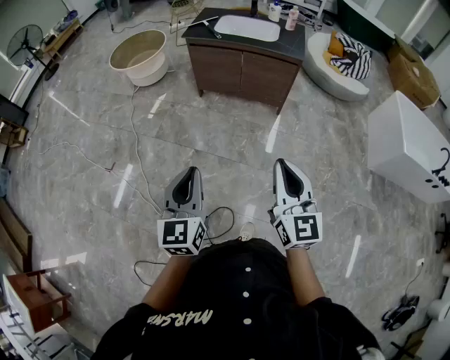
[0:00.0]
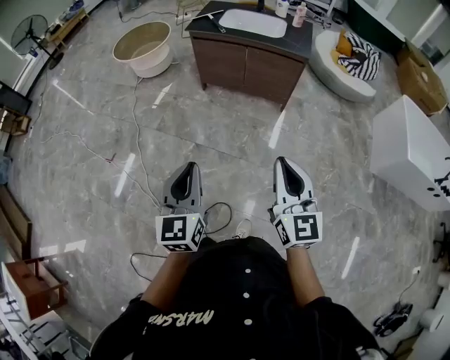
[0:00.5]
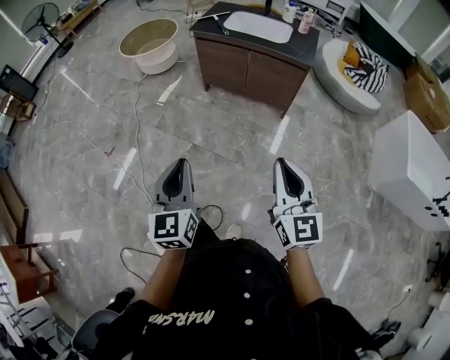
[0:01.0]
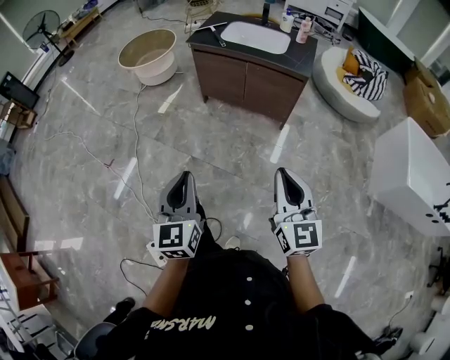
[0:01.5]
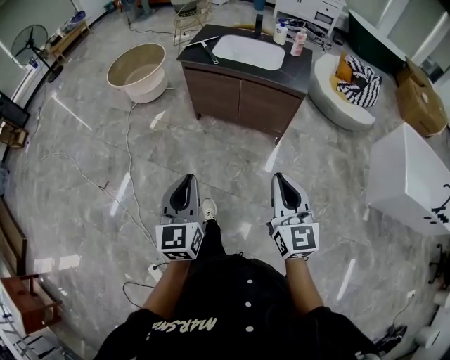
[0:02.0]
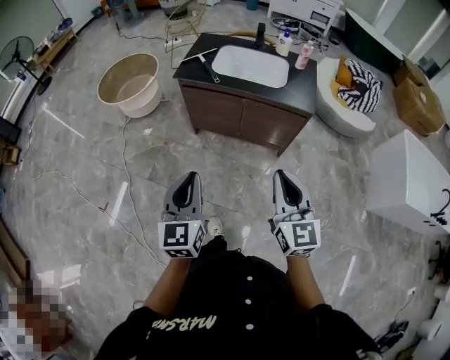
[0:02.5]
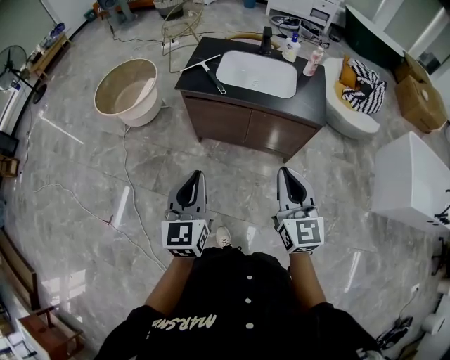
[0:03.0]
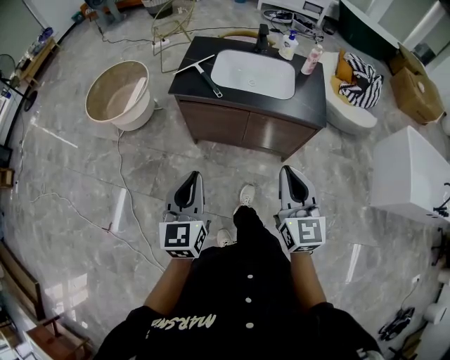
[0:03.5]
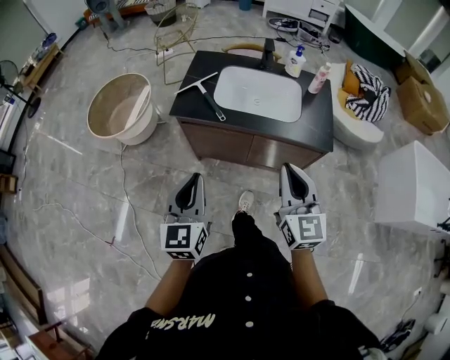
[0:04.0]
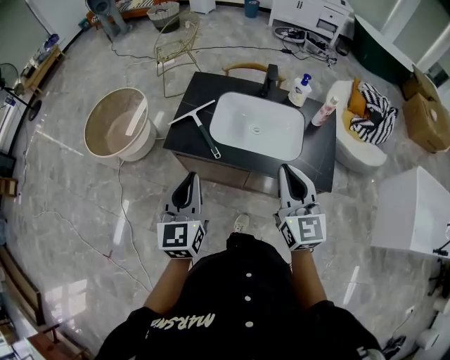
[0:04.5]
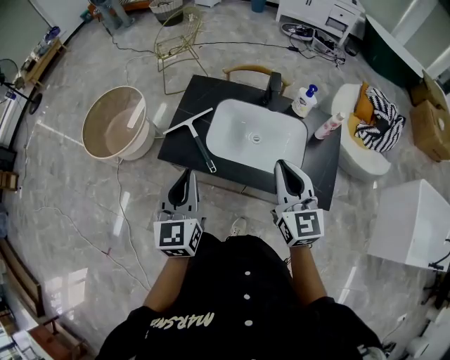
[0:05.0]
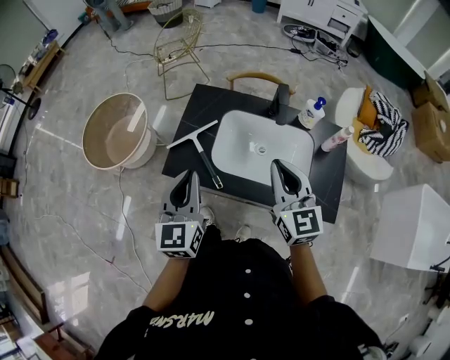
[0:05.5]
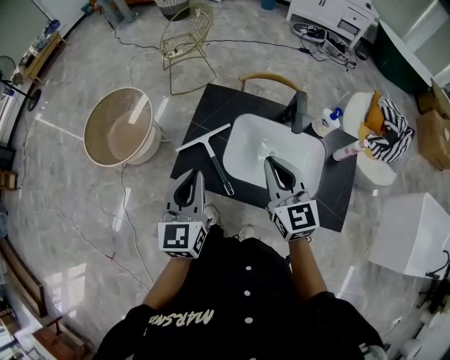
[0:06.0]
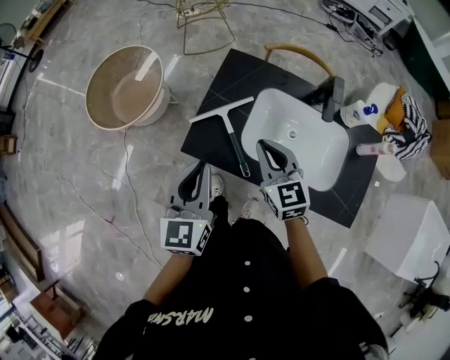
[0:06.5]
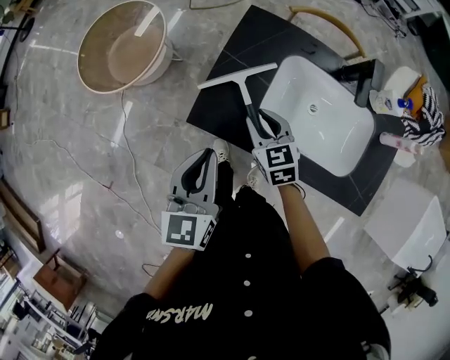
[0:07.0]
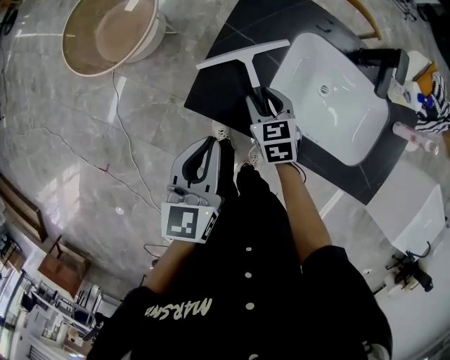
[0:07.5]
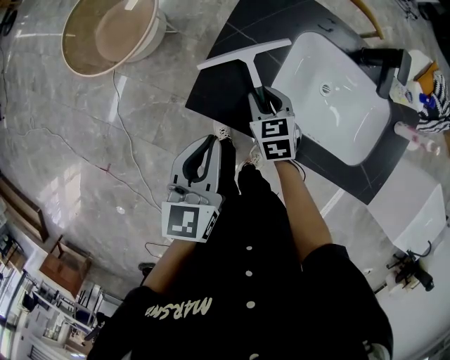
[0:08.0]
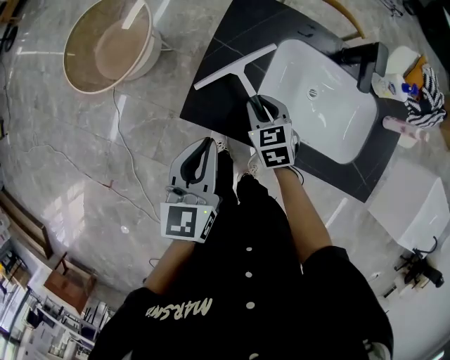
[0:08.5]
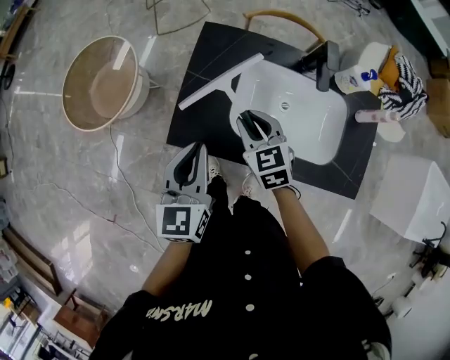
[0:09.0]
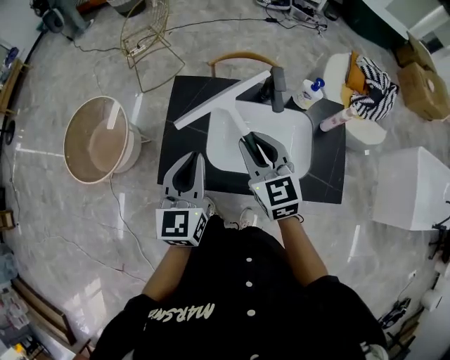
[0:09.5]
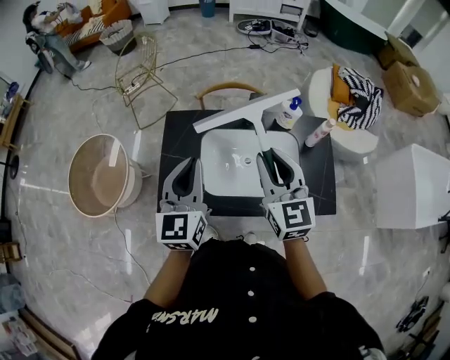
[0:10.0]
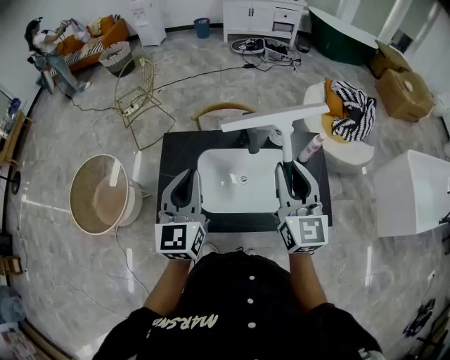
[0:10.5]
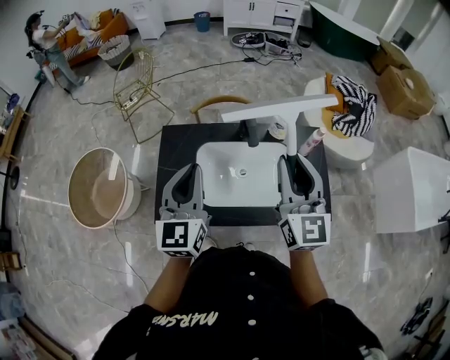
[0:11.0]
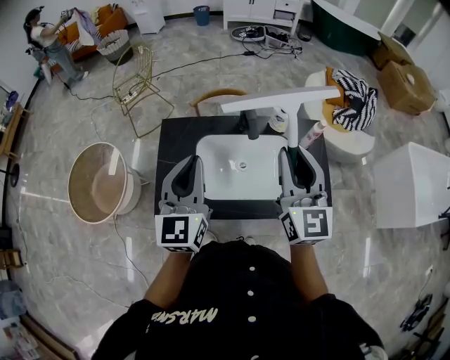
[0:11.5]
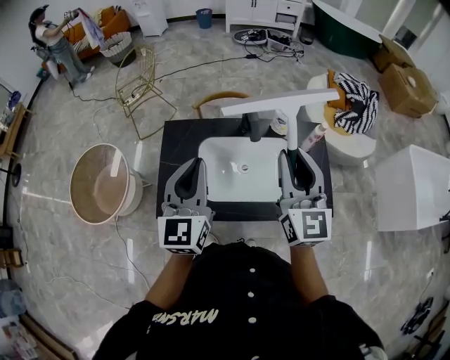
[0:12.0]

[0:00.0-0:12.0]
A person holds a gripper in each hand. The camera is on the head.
0:00.0 to 0:02.0: Both grippers move forward and to the right, about 20 cm.
0:02.0 to 0:04.0: Both grippers are carried forward, some 40 cm.
0:04.0 to 0:06.0: The grippers both shift forward by approximately 40 cm.
0:06.0 to 0:08.0: The left gripper shifts about 20 cm downward and to the left, while the right gripper heads downward and to the left, covering about 35 cm, tilts its fingers roughly 40 degrees downward, and opens up.
0:08.0 to 0:10.0: The right gripper moves upward and to the right, about 40 cm, and tilts its fingers about 40 degrees upward. Meanwhile the left gripper travels upward and to the right by approximately 25 cm, and changes its angle by approximately 30 degrees.
0:10.0 to 0:12.0: The left gripper ends up some 5 cm from where it was. The right gripper travels to the right and upward by approximately 10 cm.

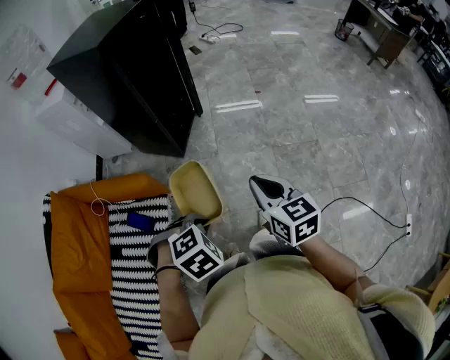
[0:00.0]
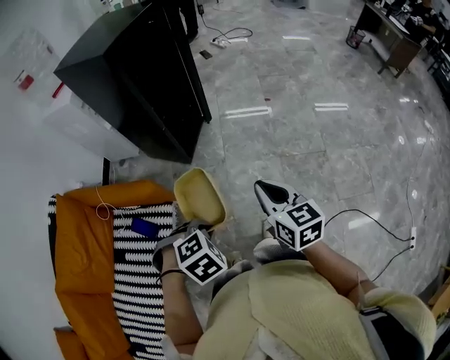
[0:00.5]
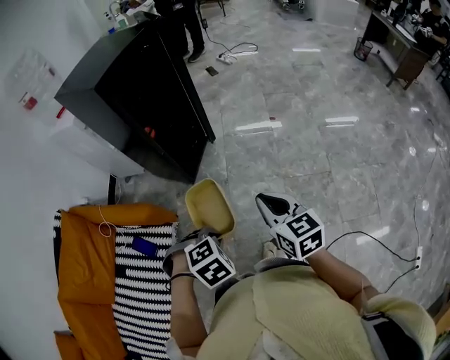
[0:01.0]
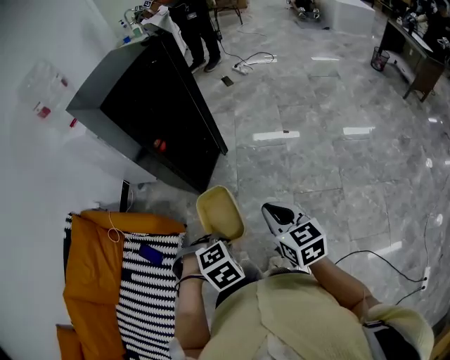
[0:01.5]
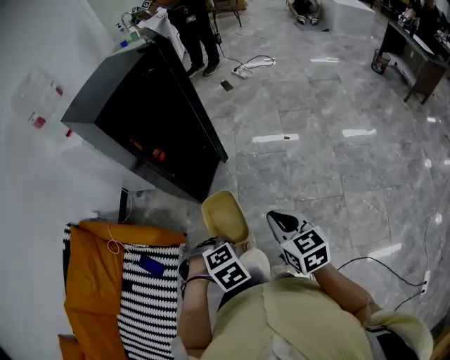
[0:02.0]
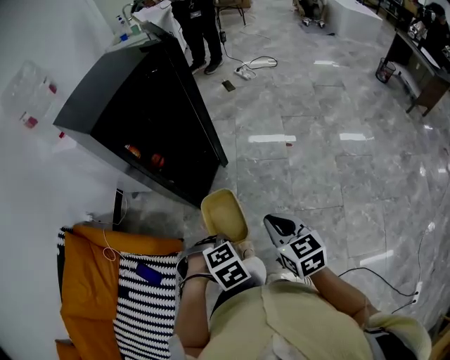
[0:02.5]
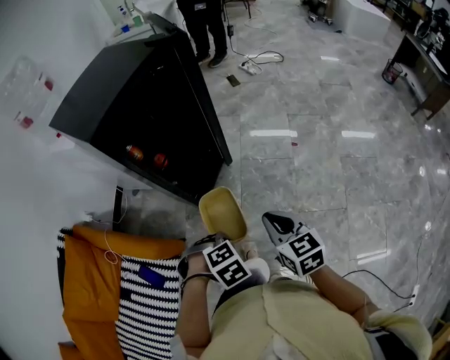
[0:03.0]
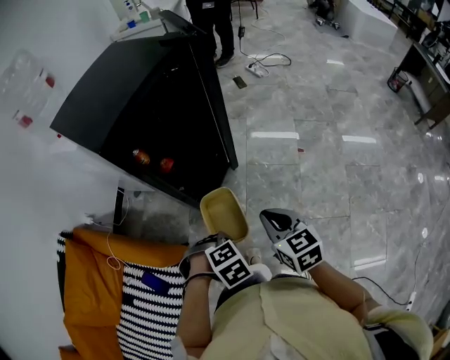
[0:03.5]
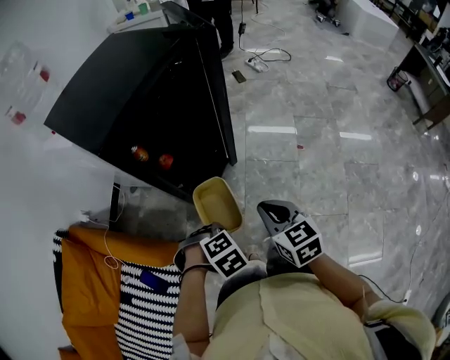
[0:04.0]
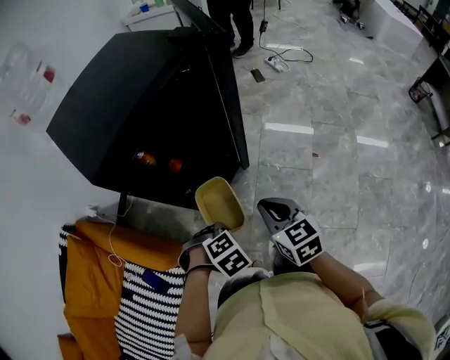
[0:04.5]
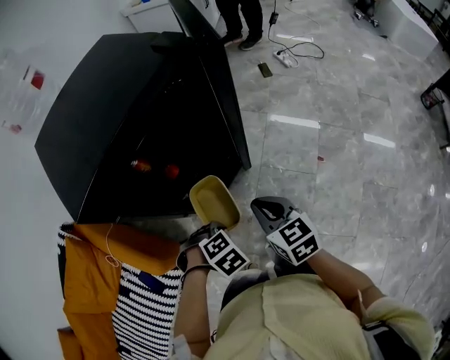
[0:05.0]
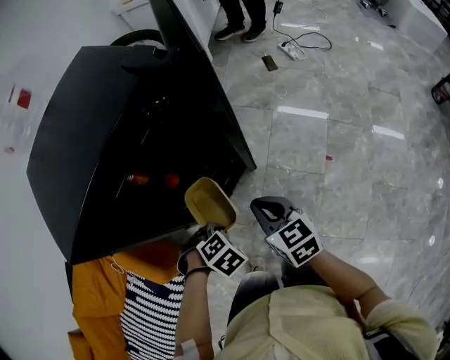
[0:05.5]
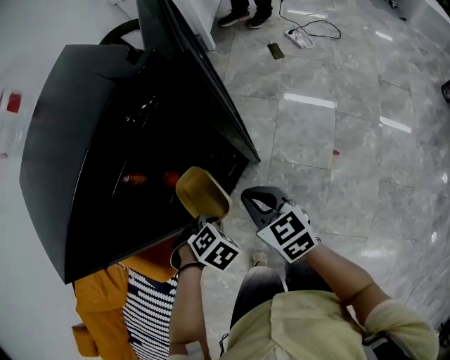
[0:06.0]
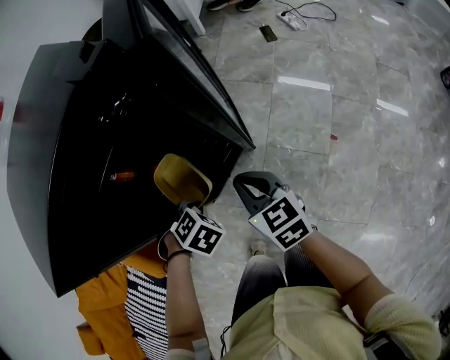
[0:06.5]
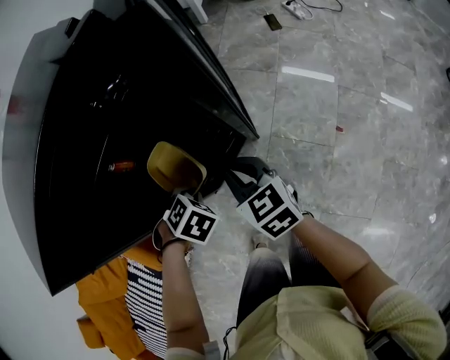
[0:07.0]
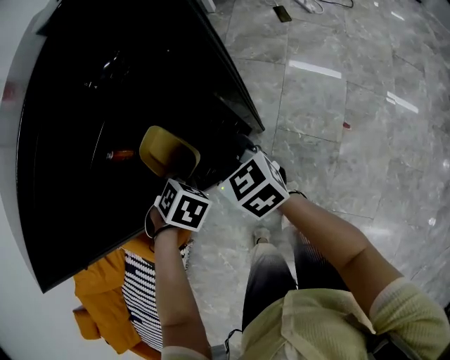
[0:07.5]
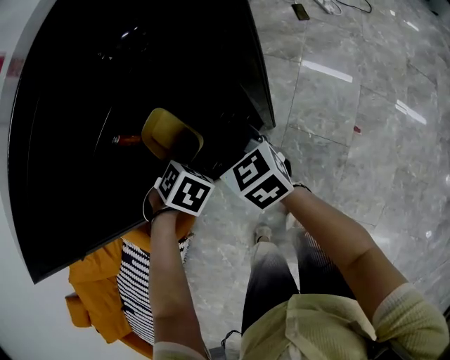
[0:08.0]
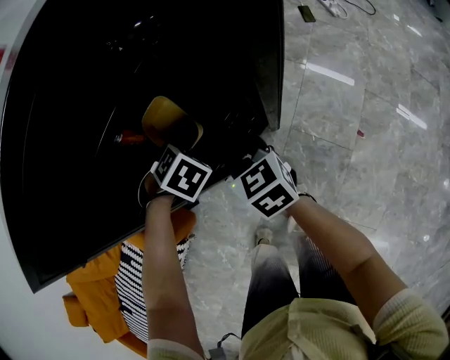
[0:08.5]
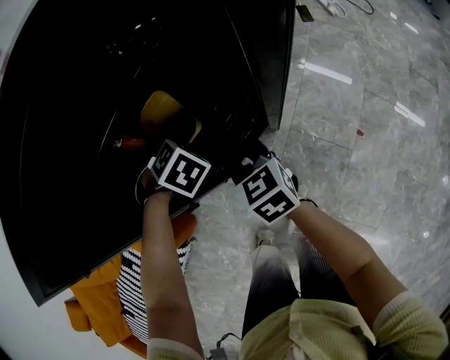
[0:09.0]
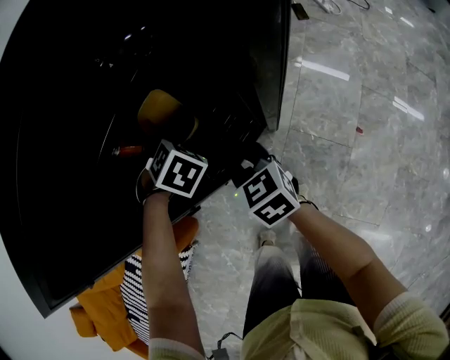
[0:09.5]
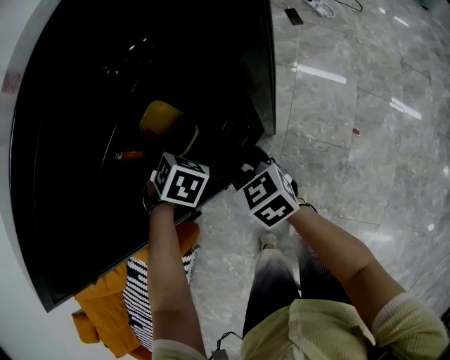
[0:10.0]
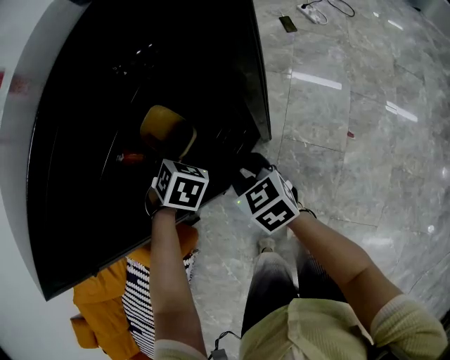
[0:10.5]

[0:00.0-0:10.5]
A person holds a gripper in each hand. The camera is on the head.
0:00.0 to 0:02.0: The right gripper moves about 20 cm; the left gripper changes place by approximately 20 cm.
0:02.0 to 0:04.0: The left gripper changes place by about 25 cm; the right gripper moves roughly 25 cm.
0:04.0 to 0:06.5: The right gripper changes place by some 25 cm. Meanwhile the left gripper ends up about 25 cm from where it was, and rotates roughly 30 degrees.
0:06.5 to 0:08.5: The right gripper changes place by some 15 cm; the left gripper shifts by roughly 10 cm.
0:08.5 to 0:10.5: The left gripper opens its fingers.

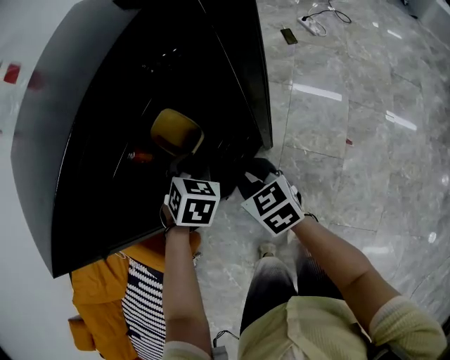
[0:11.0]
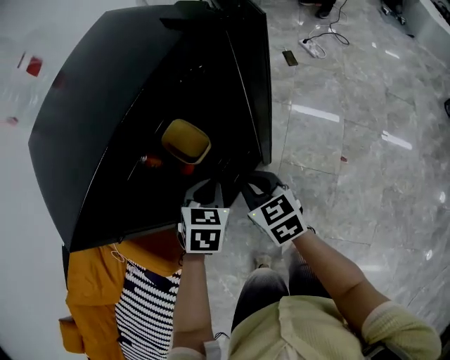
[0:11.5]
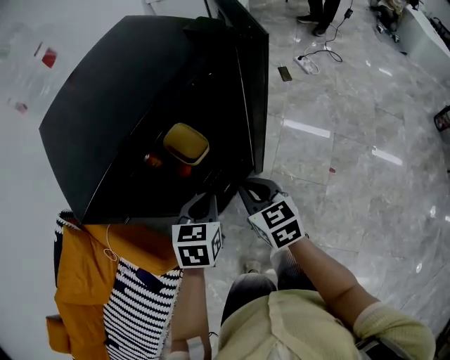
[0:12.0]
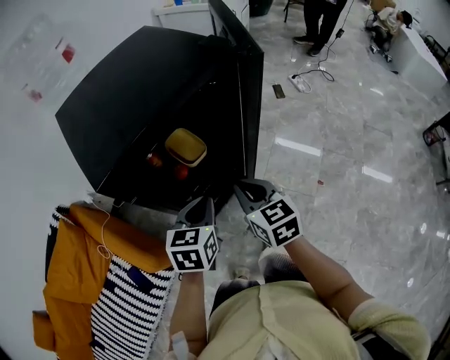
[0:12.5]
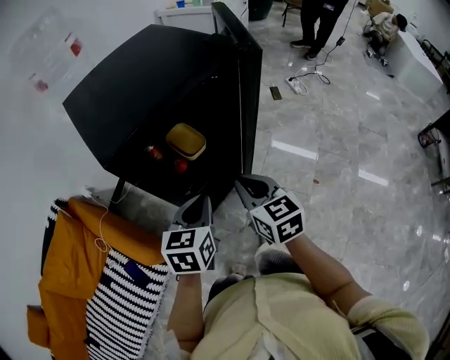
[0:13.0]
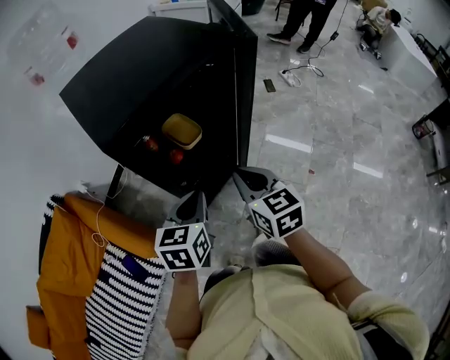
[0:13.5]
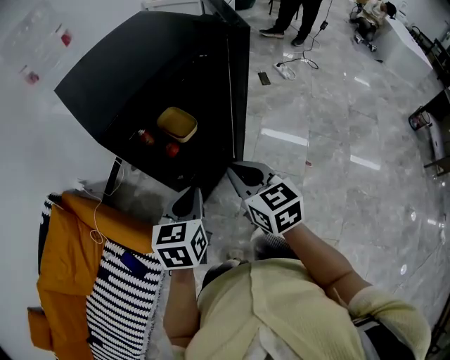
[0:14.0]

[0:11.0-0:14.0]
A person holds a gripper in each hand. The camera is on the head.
0:11.0 to 0:12.5: The right gripper shifts some 15 cm upward and backward, while the left gripper shifts roughly 20 cm backward and upward, swivels about 40 degrees, and closes.
0:12.5 to 0:14.0: The grippers both shift backward by some 5 cm.

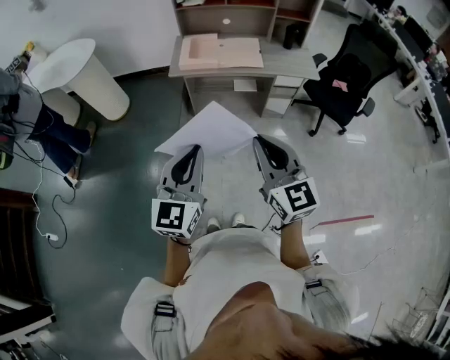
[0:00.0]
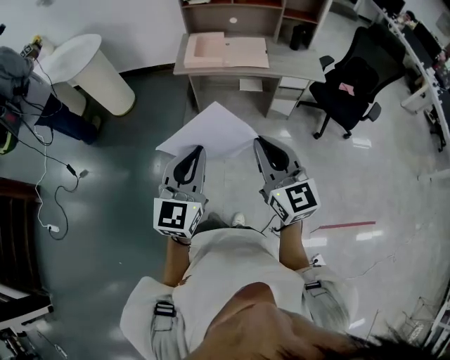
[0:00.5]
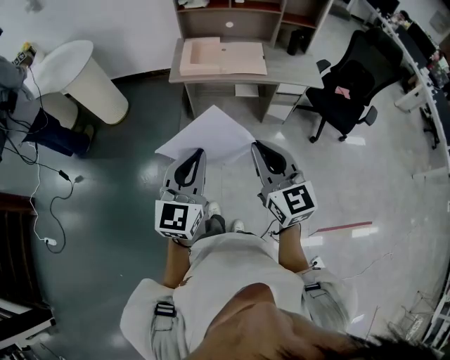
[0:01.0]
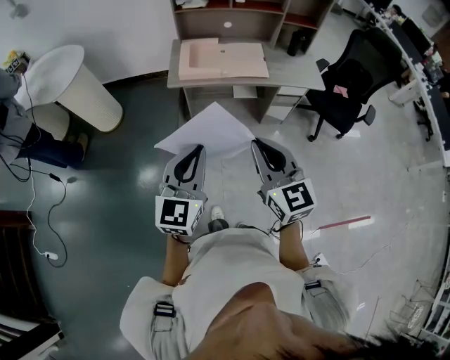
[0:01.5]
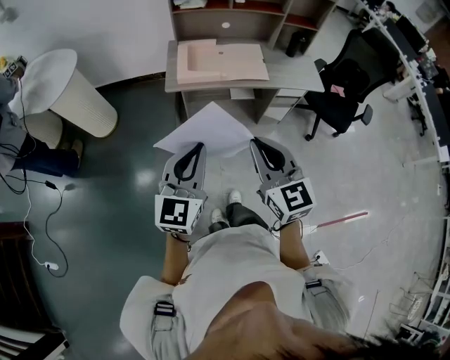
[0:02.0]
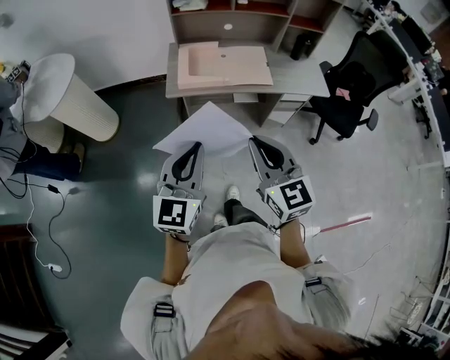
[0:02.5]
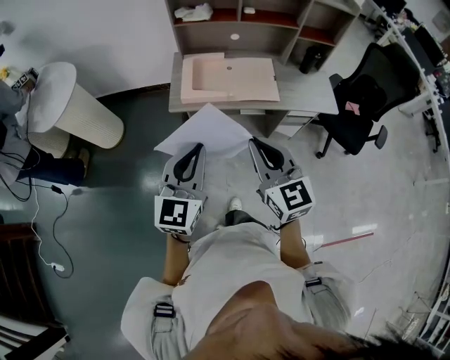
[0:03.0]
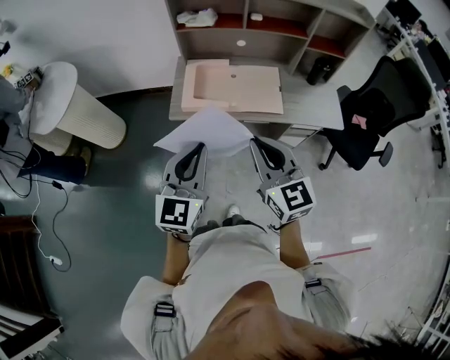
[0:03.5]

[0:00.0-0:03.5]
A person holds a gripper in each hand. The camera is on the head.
0:00.0 to 0:02.0: The grippers both shift forward and to the left by approximately 20 cm.
0:02.0 to 0:03.5: The grippers both shift forward by approximately 20 cm.
